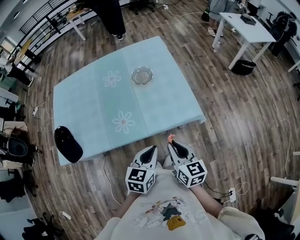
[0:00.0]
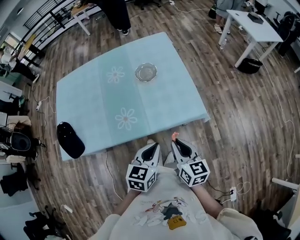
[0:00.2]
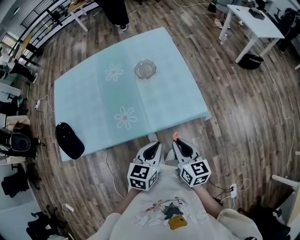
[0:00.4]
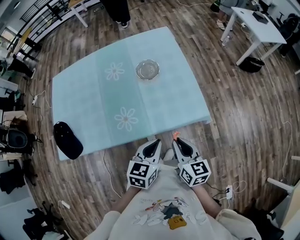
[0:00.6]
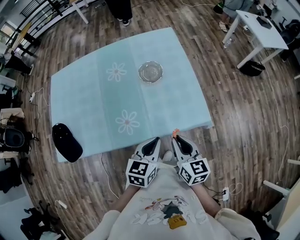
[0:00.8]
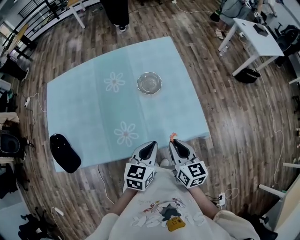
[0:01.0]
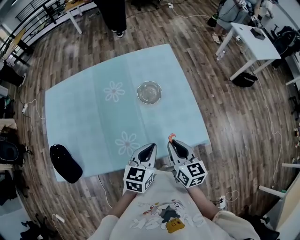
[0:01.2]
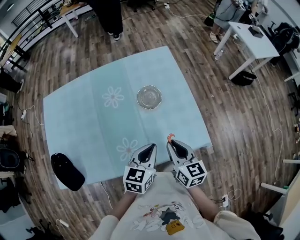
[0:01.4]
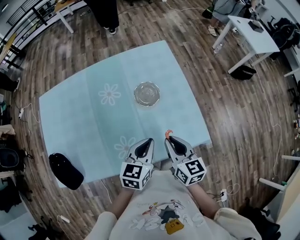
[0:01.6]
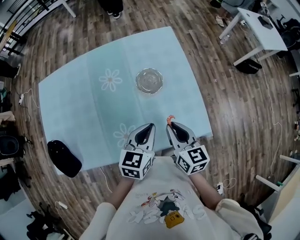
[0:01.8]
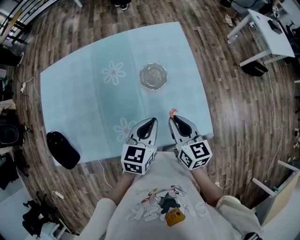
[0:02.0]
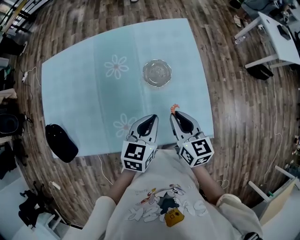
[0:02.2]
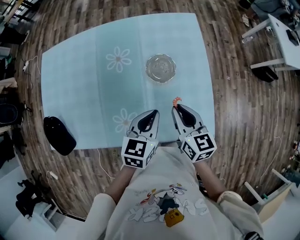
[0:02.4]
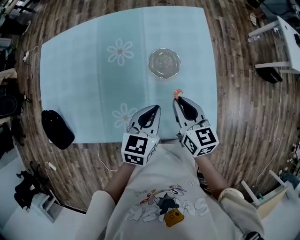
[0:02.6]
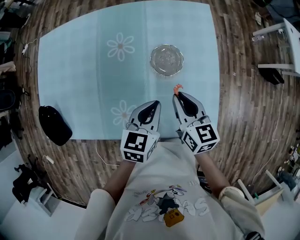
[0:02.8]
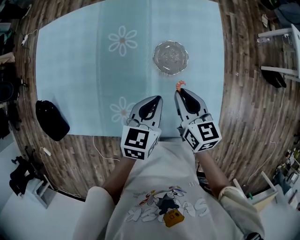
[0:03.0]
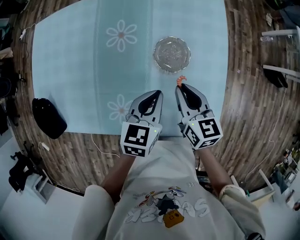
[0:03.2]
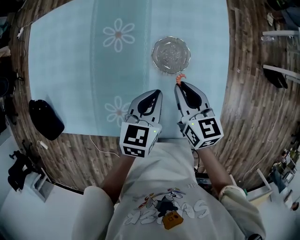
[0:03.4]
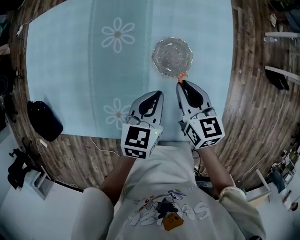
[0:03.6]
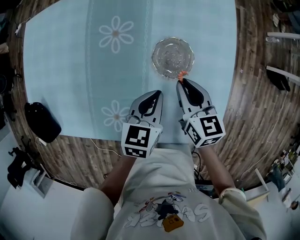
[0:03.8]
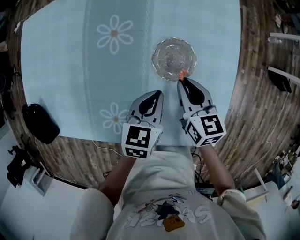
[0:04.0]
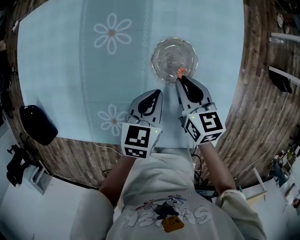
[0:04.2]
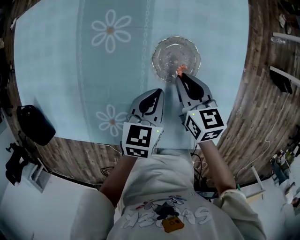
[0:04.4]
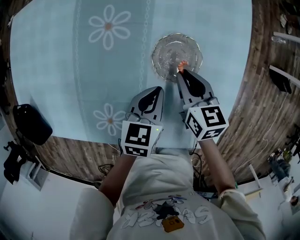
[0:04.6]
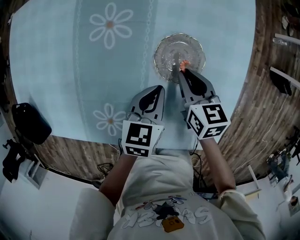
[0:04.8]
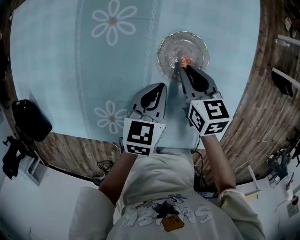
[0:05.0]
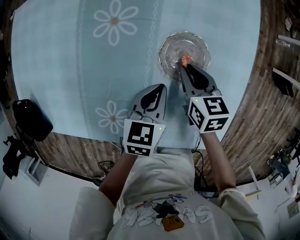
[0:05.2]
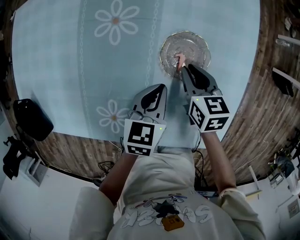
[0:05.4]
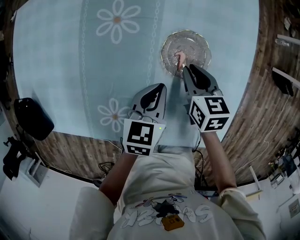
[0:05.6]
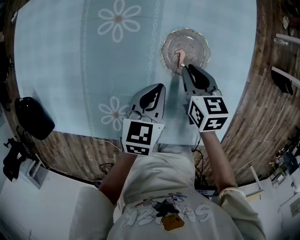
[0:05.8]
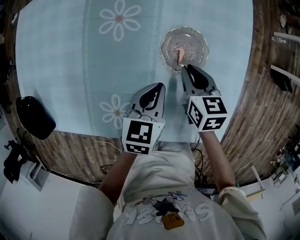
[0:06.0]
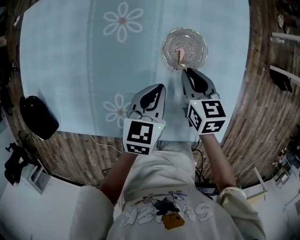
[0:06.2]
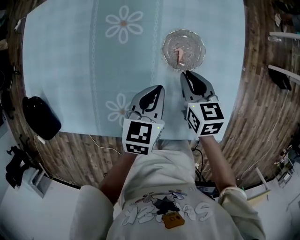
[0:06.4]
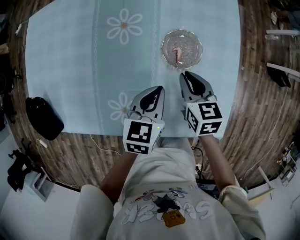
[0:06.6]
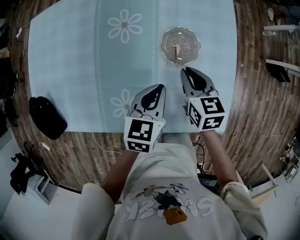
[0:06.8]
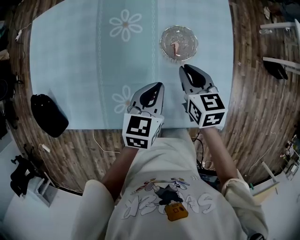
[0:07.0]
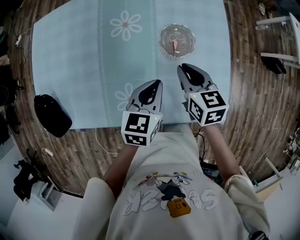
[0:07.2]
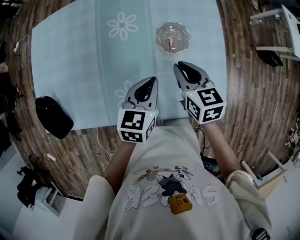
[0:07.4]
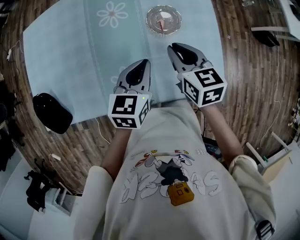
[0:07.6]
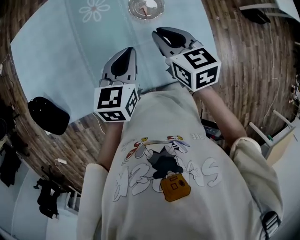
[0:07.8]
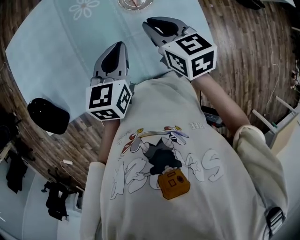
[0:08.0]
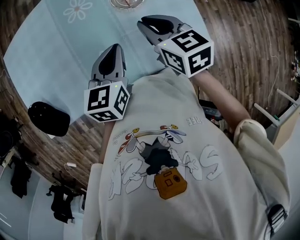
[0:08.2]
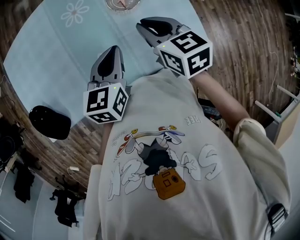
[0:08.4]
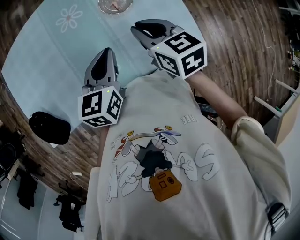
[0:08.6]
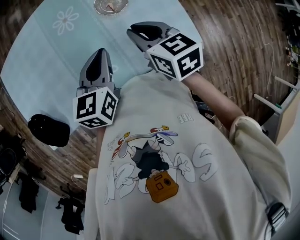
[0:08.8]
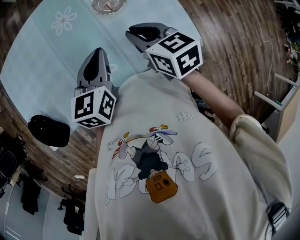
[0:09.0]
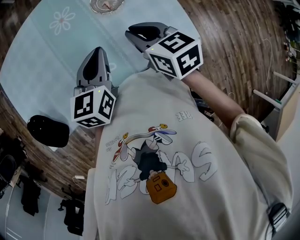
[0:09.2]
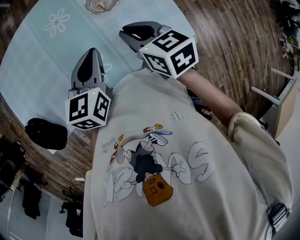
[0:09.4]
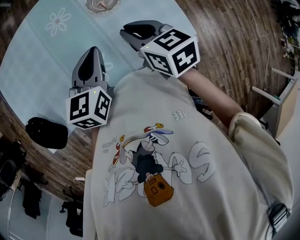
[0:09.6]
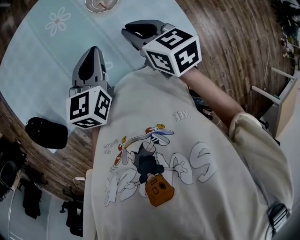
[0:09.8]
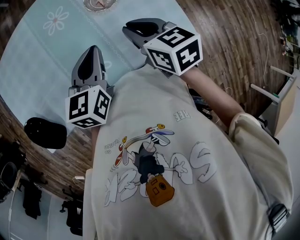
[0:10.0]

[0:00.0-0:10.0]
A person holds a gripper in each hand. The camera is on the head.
0.0 to 1.4 s: The grippers both shift forward by roughly 20 cm.
1.4 to 2.8 s: The right gripper travels forward by approximately 15 cm; the left gripper heads forward and downward, covering approximately 10 cm.
2.8 to 4.2 s: Both grippers travel together downward and forward, roughly 15 cm.
4.2 to 5.8 s: The grippers make only small movements.
5.8 to 7.2 s: Both grippers travel together upward and backward, roughly 15 cm.
7.2 to 8.6 s: The left gripper heads upward and backward, covering some 10 cm. The right gripper shifts about 15 cm backward and upward.
8.6 to 10.0 s: The grippers move only a little.

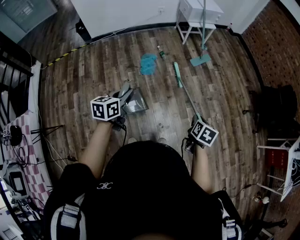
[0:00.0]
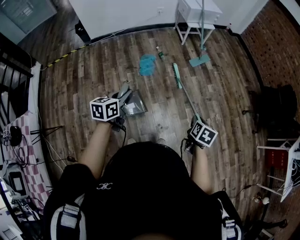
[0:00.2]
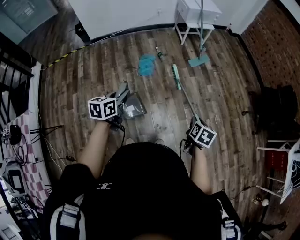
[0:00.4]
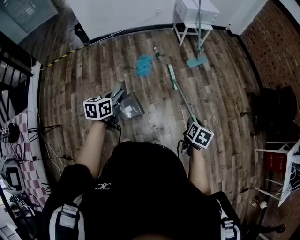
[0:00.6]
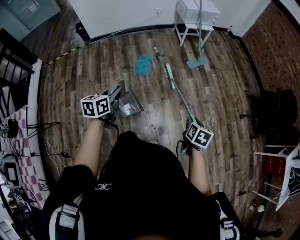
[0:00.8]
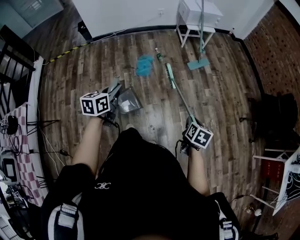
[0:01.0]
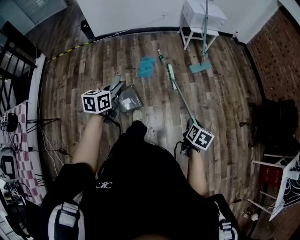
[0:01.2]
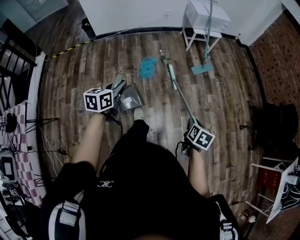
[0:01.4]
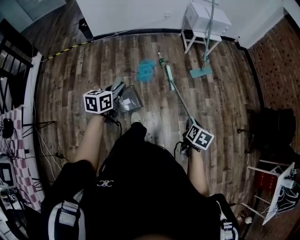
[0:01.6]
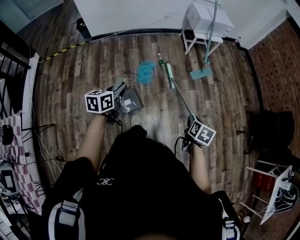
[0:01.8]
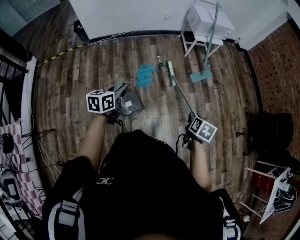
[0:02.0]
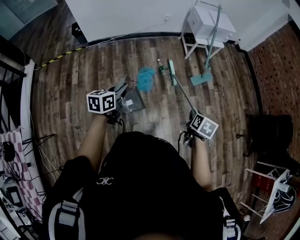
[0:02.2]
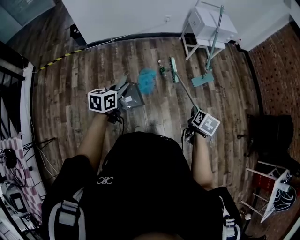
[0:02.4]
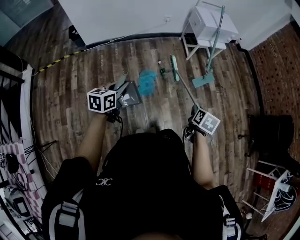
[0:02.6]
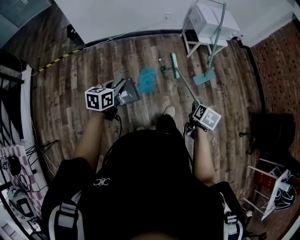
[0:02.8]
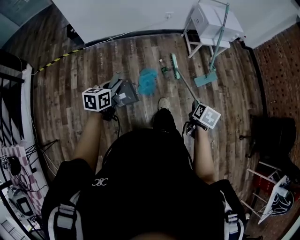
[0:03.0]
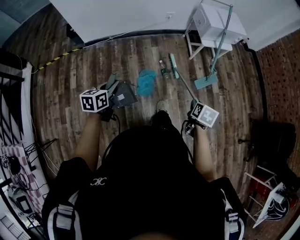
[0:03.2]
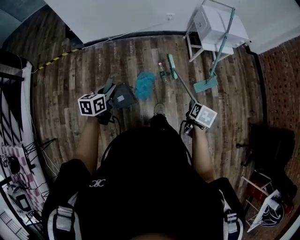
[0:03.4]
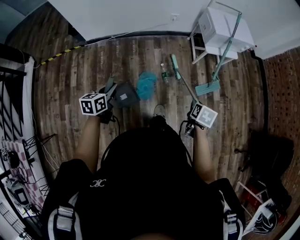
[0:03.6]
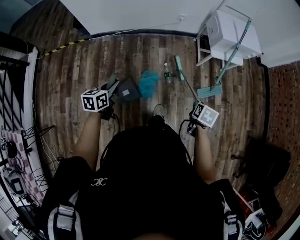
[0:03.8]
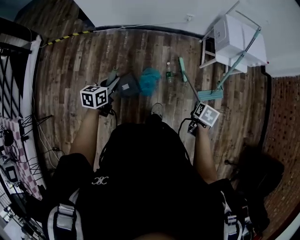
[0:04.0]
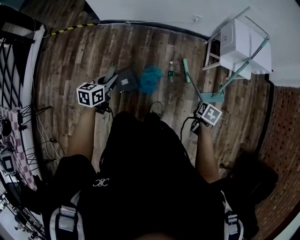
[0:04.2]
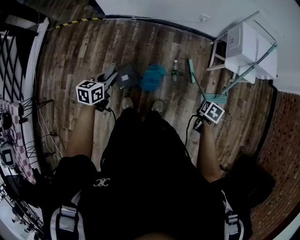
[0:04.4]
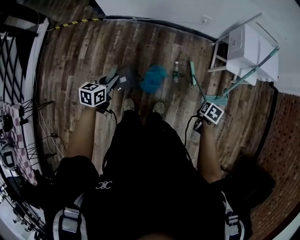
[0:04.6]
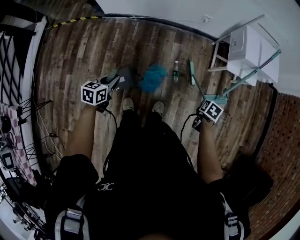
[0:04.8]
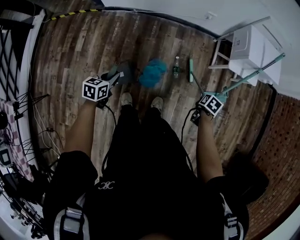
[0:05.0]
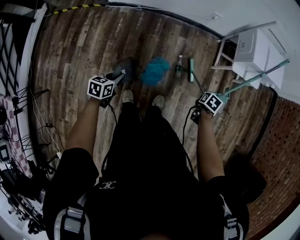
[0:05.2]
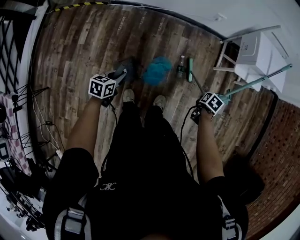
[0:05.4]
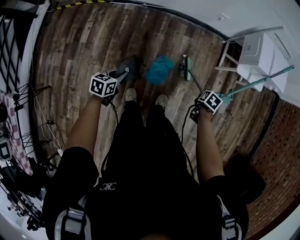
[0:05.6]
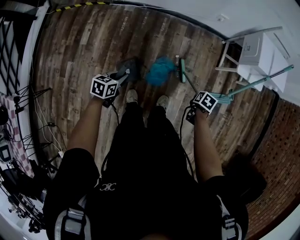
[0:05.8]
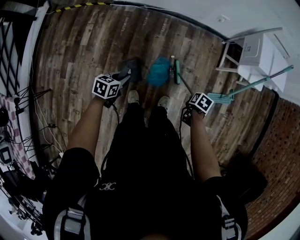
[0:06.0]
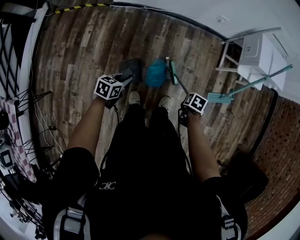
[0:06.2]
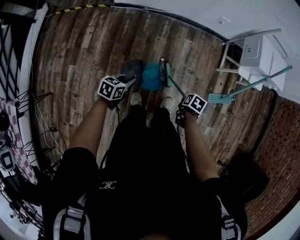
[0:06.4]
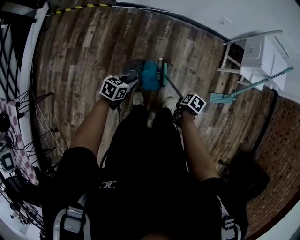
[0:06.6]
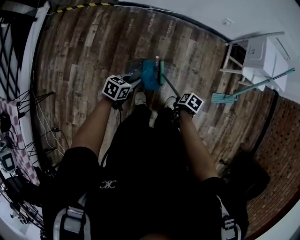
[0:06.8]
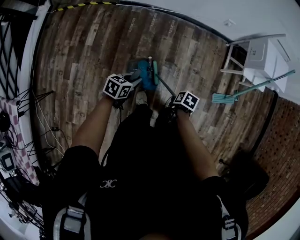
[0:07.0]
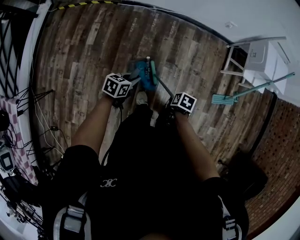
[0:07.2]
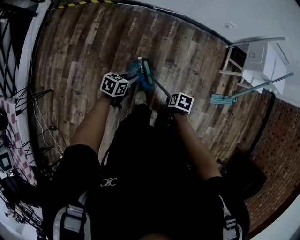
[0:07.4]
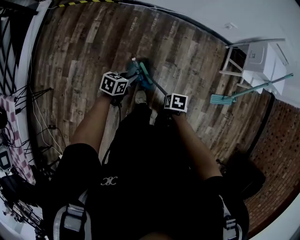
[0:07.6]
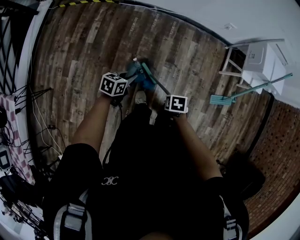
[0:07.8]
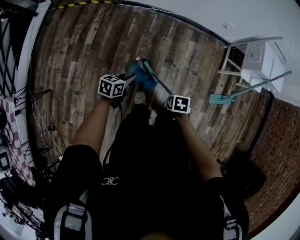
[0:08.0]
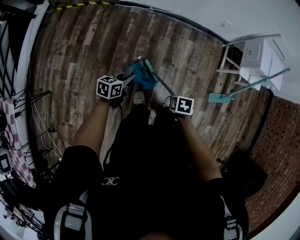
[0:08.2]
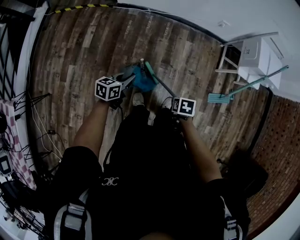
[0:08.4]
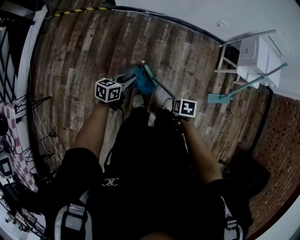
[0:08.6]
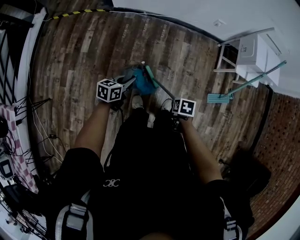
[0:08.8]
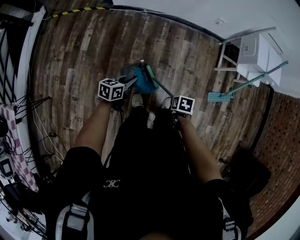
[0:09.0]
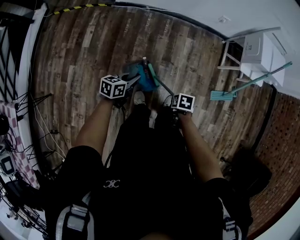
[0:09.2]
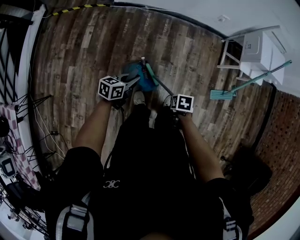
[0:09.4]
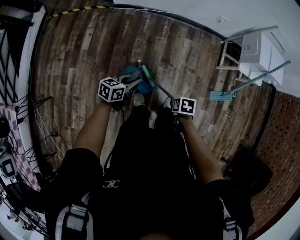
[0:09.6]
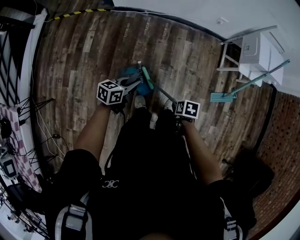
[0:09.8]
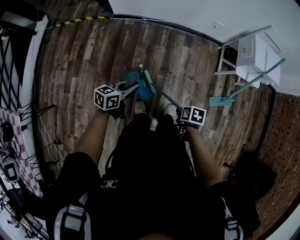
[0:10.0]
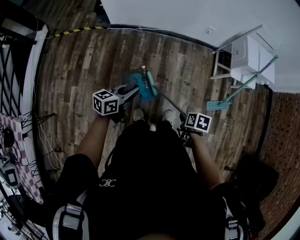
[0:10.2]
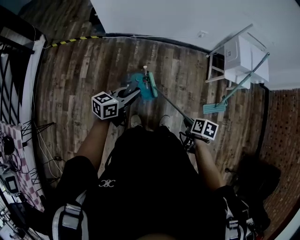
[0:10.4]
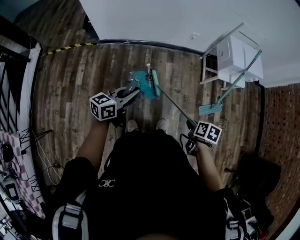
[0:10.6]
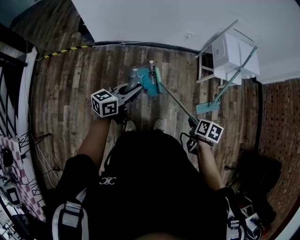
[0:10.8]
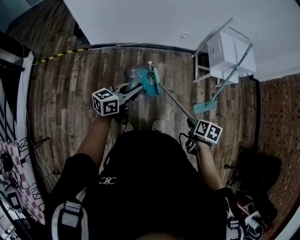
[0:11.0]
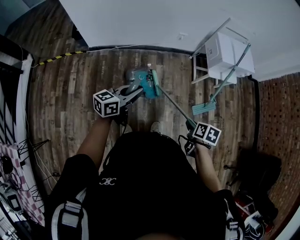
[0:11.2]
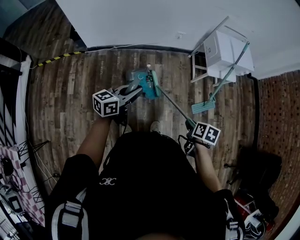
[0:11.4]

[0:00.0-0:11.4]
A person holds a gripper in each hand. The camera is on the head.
0.0 to 1.4 s: Both grippers travel together forward, approximately 10 cm.
1.4 to 2.8 s: Both grippers move forward and to the left, about 35 cm.
2.8 to 4.2 s: The right gripper is displaced forward by roughly 30 cm, and rotates about 20 degrees. The left gripper travels forward by roughly 15 cm.
4.2 to 5.6 s: Both grippers move downward, roughly 10 cm.
5.6 to 7.2 s: The left gripper changes place by roughly 10 cm, while the right gripper ends up some 30 cm from where it was.
7.2 to 8.6 s: The right gripper moves roughly 5 cm.
8.6 to 10.0 s: The left gripper shifts by about 5 cm.
10.0 to 11.4 s: The left gripper changes place by about 20 cm, and changes its angle by about 20 degrees, while the right gripper shifts by about 20 cm, and rotates roughly 20 degrees.

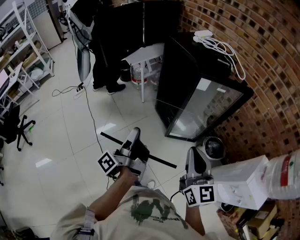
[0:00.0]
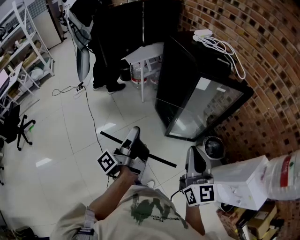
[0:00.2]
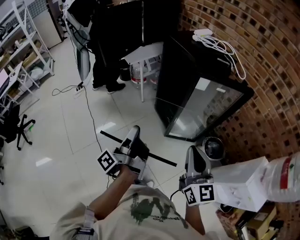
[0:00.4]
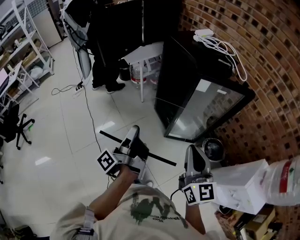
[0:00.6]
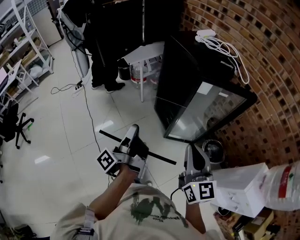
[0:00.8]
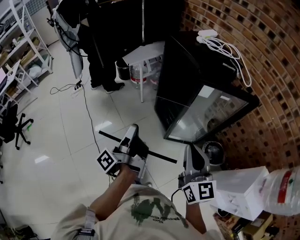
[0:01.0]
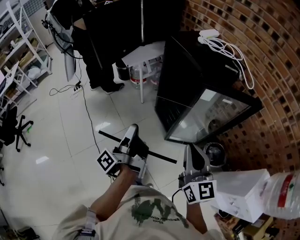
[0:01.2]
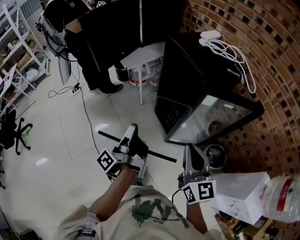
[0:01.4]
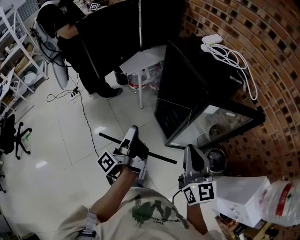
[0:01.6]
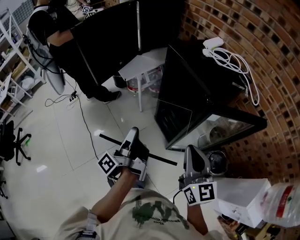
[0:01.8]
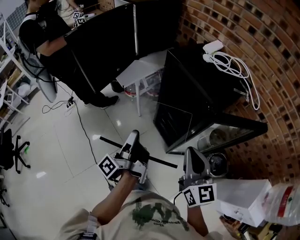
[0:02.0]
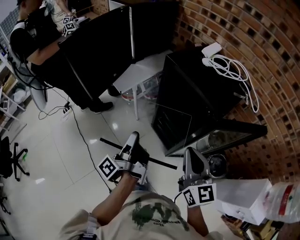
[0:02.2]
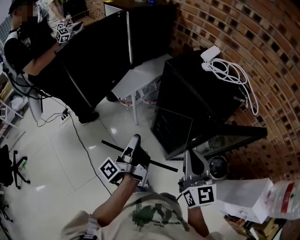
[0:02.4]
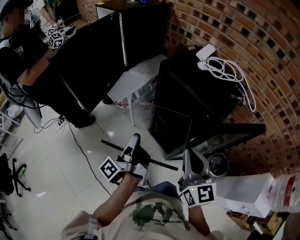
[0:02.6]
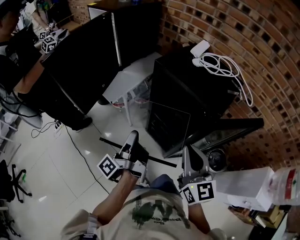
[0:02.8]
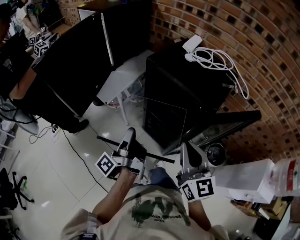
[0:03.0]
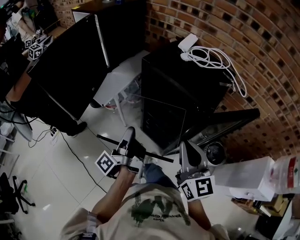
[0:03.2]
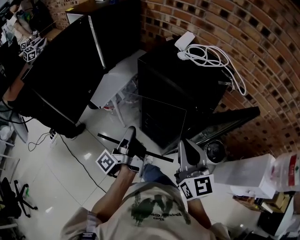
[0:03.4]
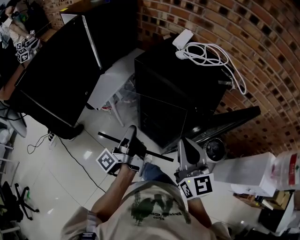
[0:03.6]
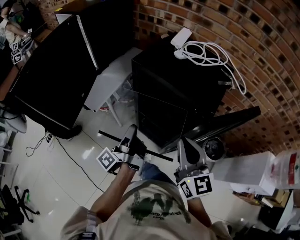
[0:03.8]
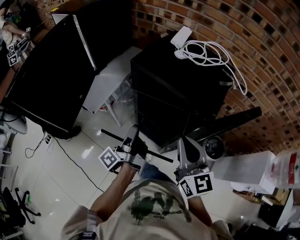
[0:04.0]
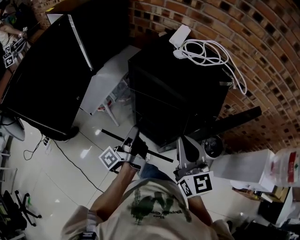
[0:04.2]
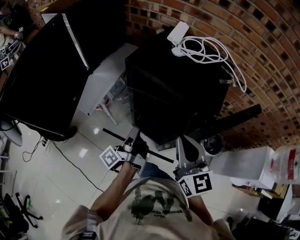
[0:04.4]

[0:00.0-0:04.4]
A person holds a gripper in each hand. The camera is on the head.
0.0 to 1.4 s: The right gripper moves roughly 15 cm.
1.4 to 3.0 s: The right gripper changes place by about 20 cm.
3.0 to 4.4 s: The right gripper ends up approximately 10 cm from where it was.
